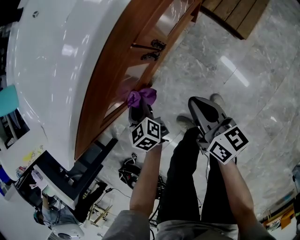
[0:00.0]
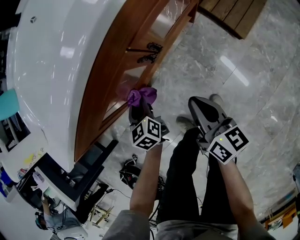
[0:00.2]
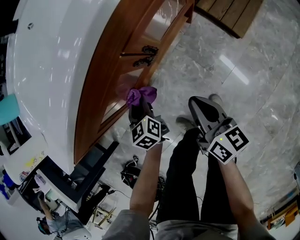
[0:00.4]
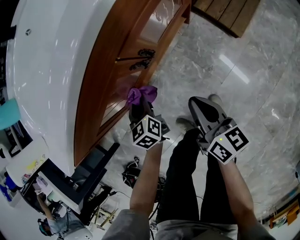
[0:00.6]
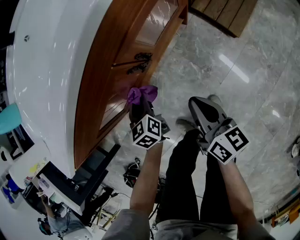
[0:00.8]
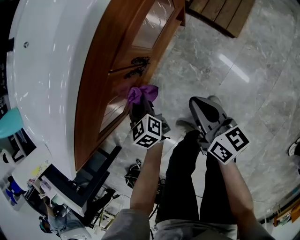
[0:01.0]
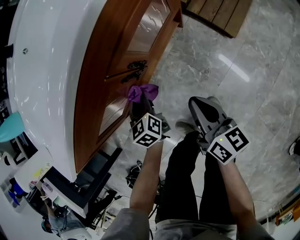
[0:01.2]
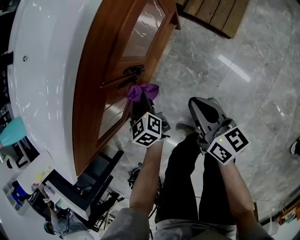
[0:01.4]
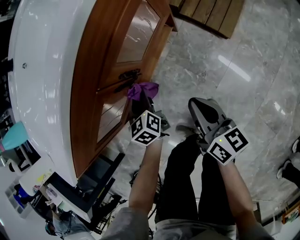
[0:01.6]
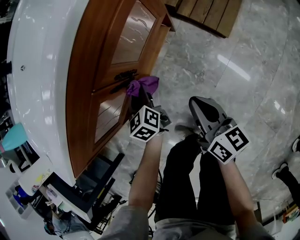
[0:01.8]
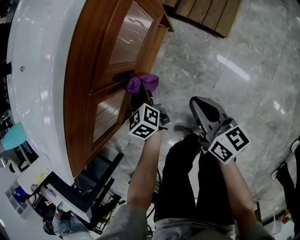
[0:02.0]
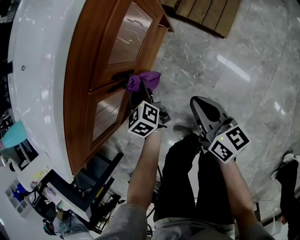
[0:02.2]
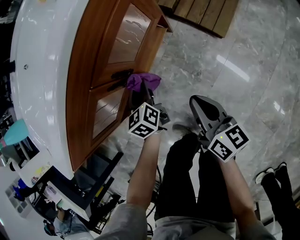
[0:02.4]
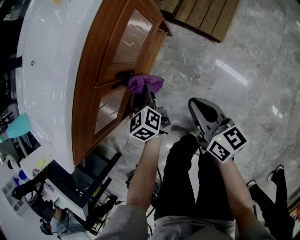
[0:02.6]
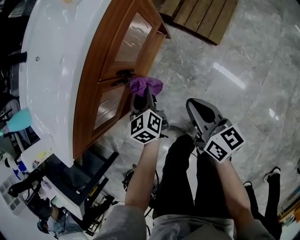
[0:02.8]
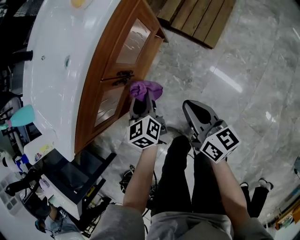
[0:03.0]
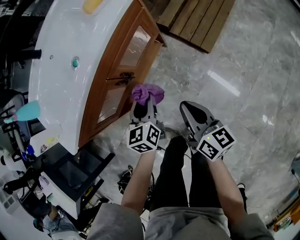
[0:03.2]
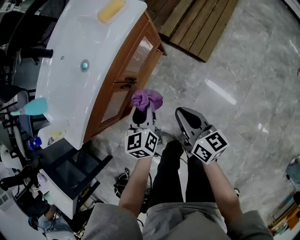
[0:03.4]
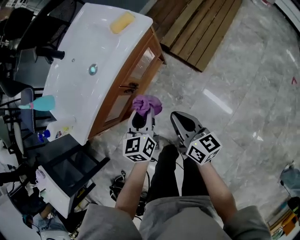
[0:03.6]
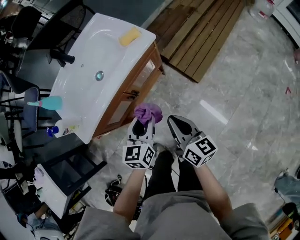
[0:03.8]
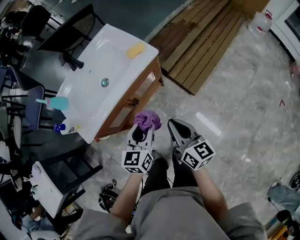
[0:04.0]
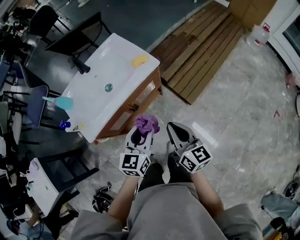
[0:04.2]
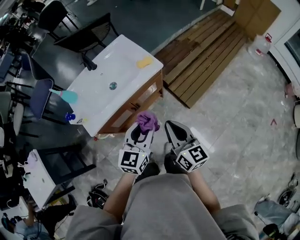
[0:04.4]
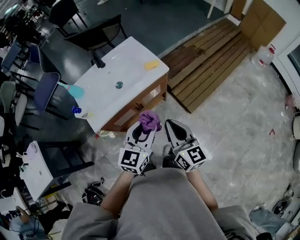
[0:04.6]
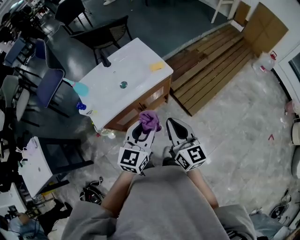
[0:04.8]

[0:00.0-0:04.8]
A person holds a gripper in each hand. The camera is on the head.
0.0 to 1.6 s: Both grippers move to the right, roughly 10 cm.
1.6 to 3.2 s: The right gripper travels upward by roughly 10 cm, while the left gripper heads upward and to the right, covering about 20 cm.
3.2 to 4.8 s: Both grippers travel together upward, about 40 cm. The right gripper changes its angle by about 30 degrees; the left gripper changes its angle by about 30 degrees.

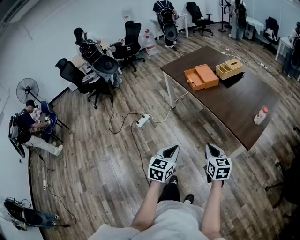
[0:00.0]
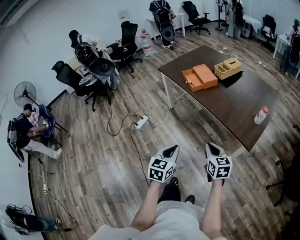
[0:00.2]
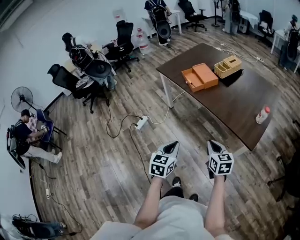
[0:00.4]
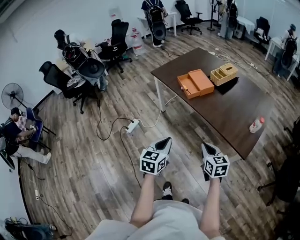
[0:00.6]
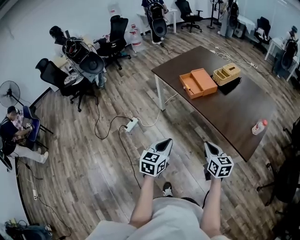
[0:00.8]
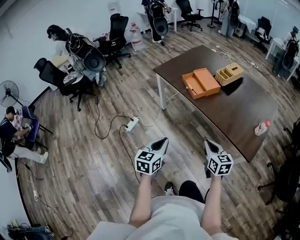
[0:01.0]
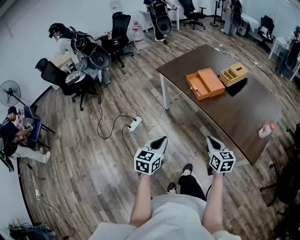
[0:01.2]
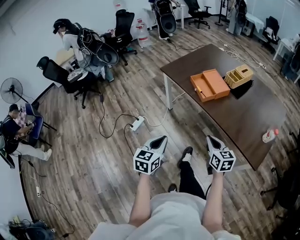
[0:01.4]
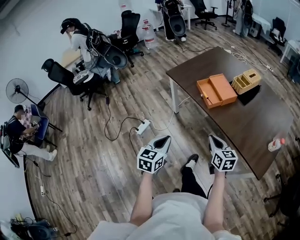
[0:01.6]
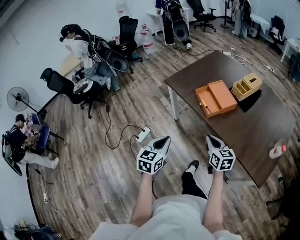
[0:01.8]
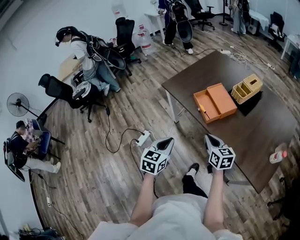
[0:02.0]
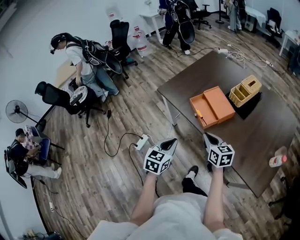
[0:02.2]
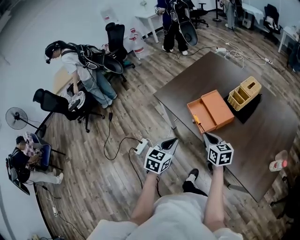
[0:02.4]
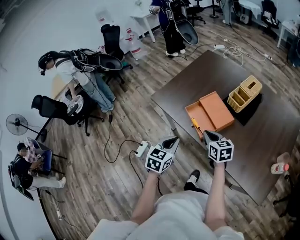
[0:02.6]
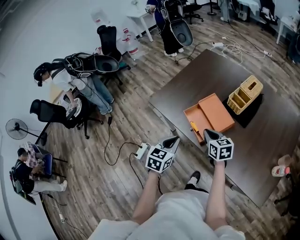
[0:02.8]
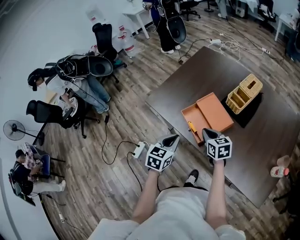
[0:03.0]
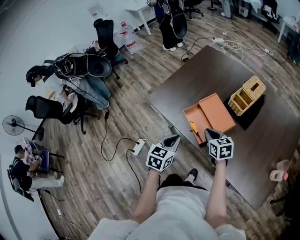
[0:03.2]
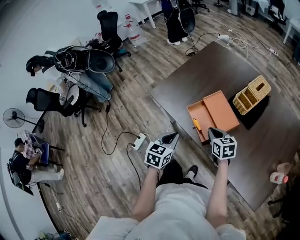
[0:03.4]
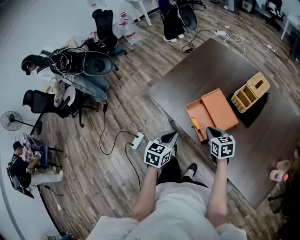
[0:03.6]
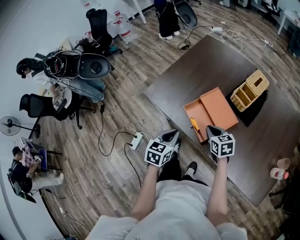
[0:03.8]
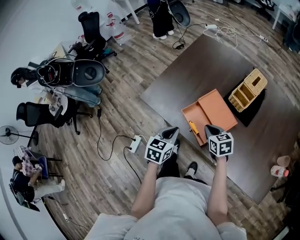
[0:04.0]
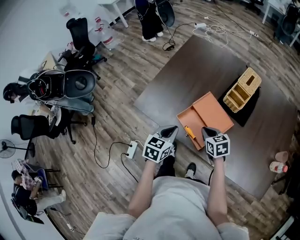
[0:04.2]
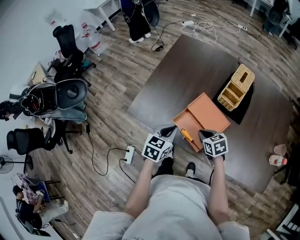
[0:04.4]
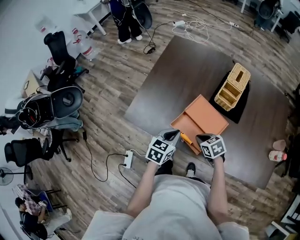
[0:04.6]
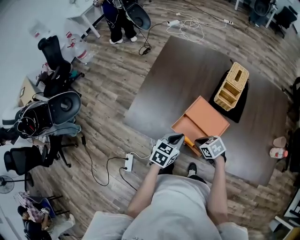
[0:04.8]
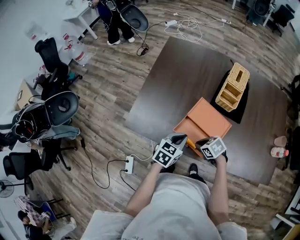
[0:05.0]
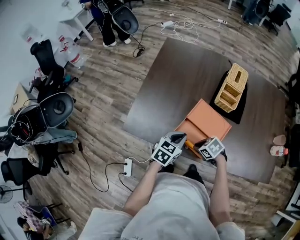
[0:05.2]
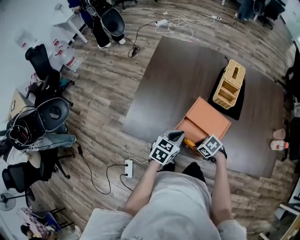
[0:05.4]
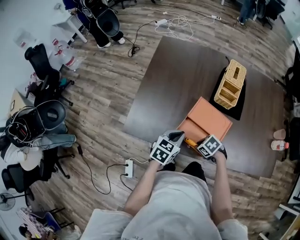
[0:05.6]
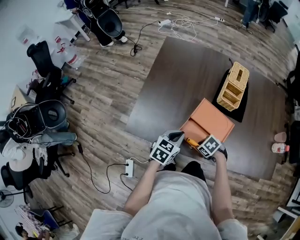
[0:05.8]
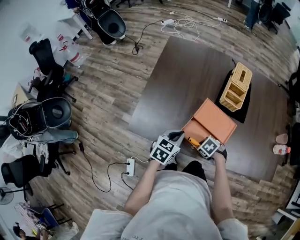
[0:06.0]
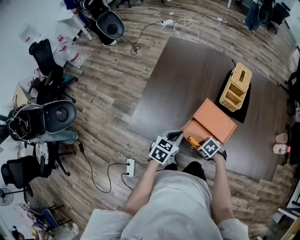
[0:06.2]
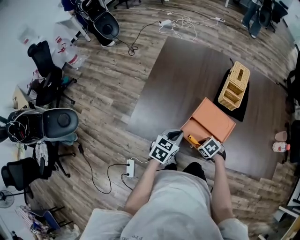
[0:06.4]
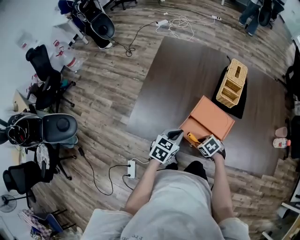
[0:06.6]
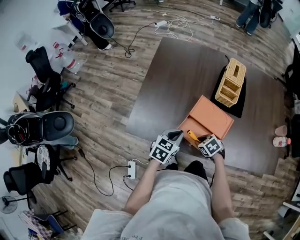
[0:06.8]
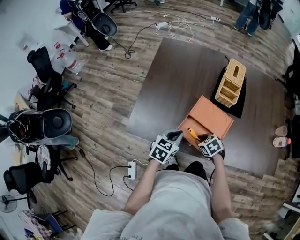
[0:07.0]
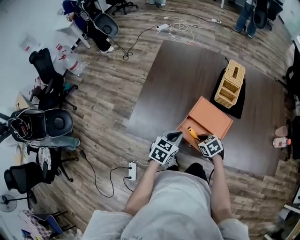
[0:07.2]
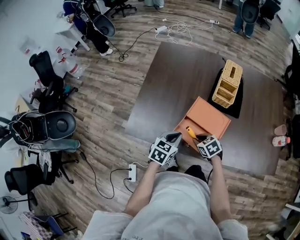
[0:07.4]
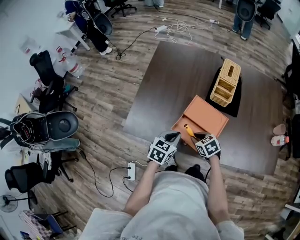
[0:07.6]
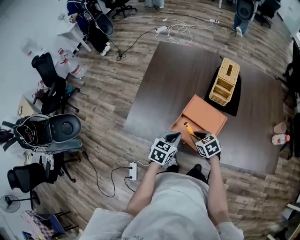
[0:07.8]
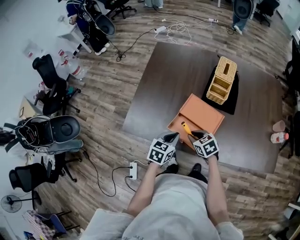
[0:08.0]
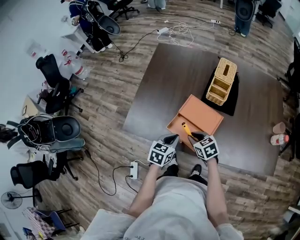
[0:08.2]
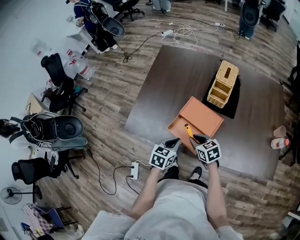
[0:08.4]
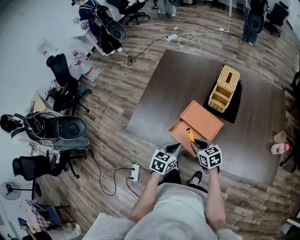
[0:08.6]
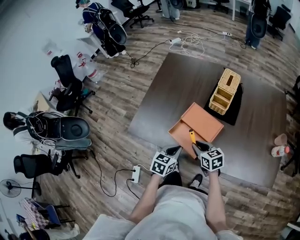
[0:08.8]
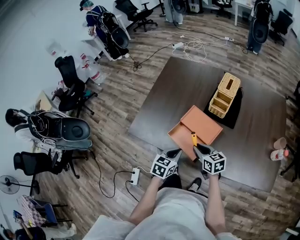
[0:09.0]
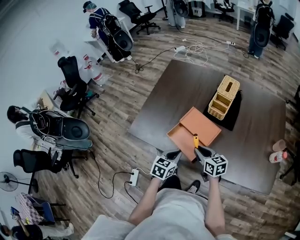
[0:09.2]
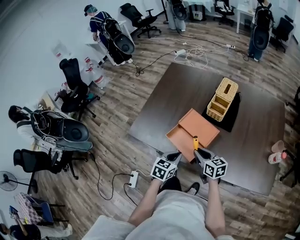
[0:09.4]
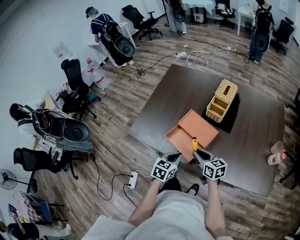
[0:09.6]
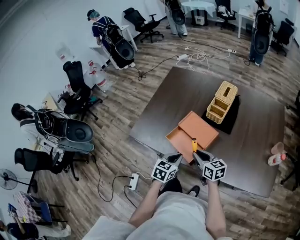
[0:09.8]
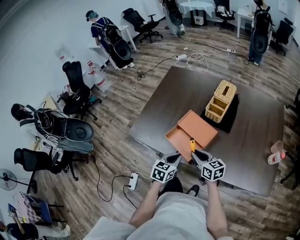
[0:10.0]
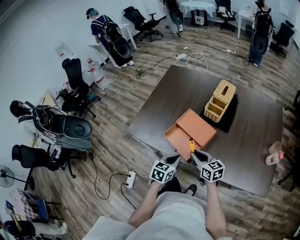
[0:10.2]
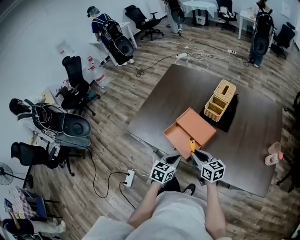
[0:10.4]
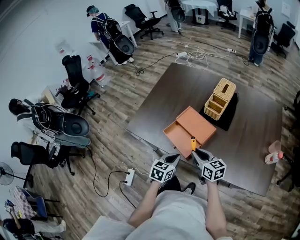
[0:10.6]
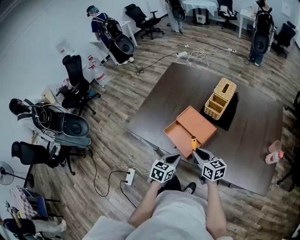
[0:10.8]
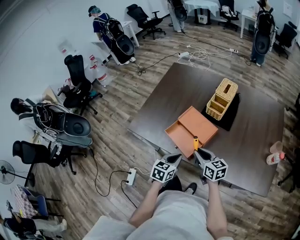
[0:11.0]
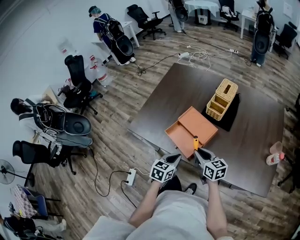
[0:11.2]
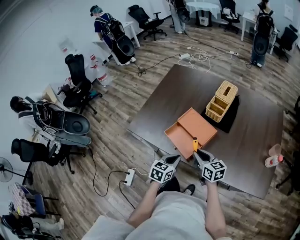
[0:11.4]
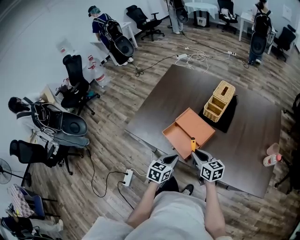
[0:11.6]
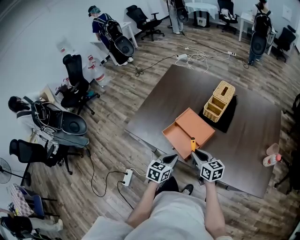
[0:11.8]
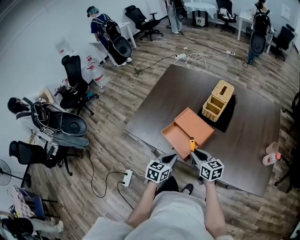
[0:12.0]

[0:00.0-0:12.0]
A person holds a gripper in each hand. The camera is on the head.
0.0 to 1.6 s: The grippers both shift forward and to the left by approximately 30 cm.
1.6 to 3.0 s: The two grippers go approximately 35 cm forward.
3.0 to 4.4 s: The left gripper moves forward, roughly 15 cm. Meanwhile the right gripper heads downward and forward, covering roughly 10 cm.
4.4 to 6.0 s: The left gripper shifts by approximately 5 cm; the right gripper heads downward, covering approximately 10 cm, and rotates approximately 30 degrees.
6.0 to 7.6 s: The right gripper moves upward, approximately 5 cm, and swivels some 30 degrees.
7.6 to 9.0 s: The left gripper heads backward and to the right, covering about 10 cm, while the right gripper goes about 10 cm upward and to the right, and turns by approximately 30 degrees.
9.0 to 10.4 s: The right gripper shifts by roughly 5 cm. Meanwhile the left gripper moves approximately 5 cm.
10.4 to 12.0 s: The grippers stay close to where they were, moving slightly.

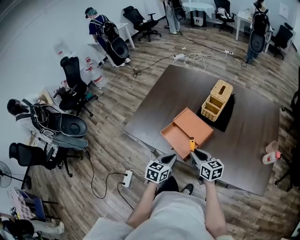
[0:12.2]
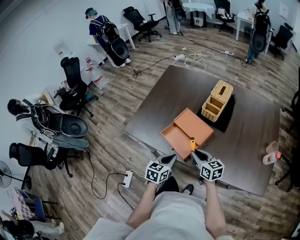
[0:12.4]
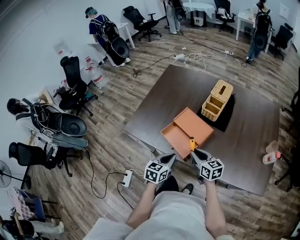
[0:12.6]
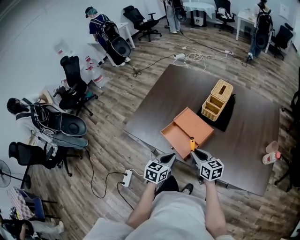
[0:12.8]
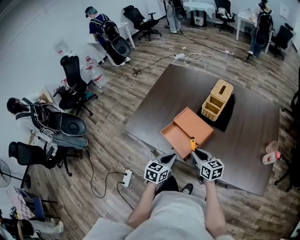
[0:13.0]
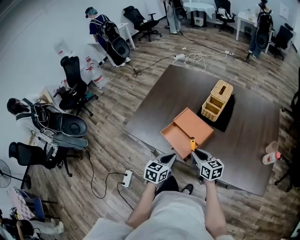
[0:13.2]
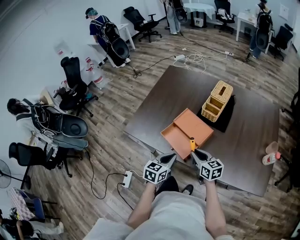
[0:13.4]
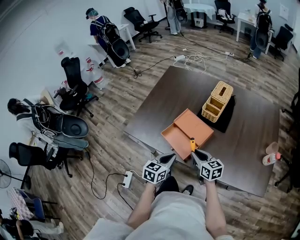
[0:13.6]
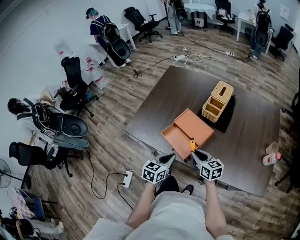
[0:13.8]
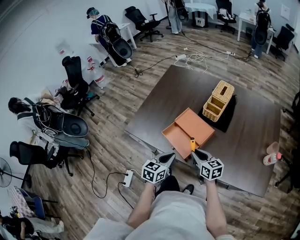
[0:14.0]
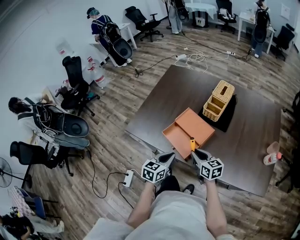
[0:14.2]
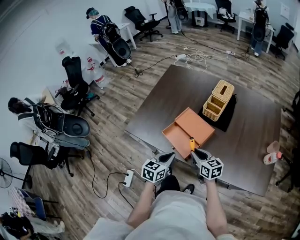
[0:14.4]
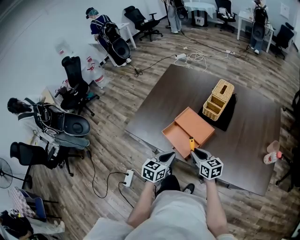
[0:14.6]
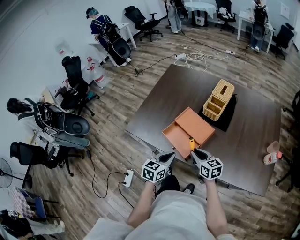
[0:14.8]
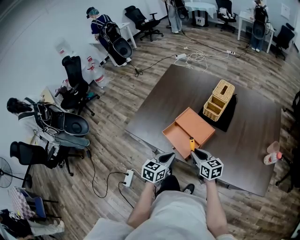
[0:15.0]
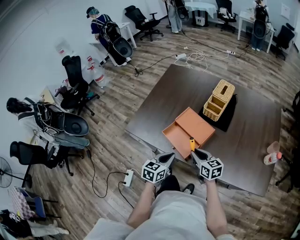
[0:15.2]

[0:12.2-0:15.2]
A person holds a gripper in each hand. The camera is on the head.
12.2 to 13.8 s: The grippers move only a little.
13.8 to 15.2 s: Neither gripper changes place.

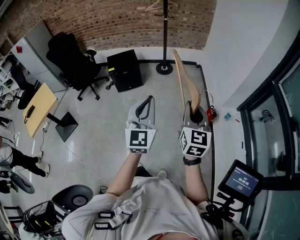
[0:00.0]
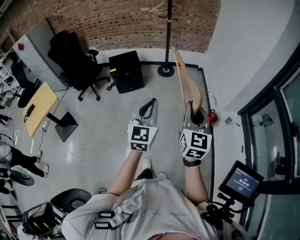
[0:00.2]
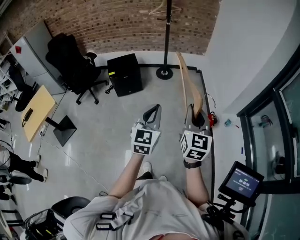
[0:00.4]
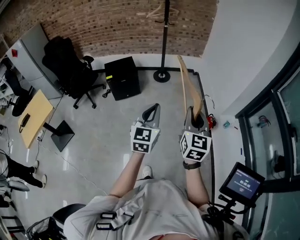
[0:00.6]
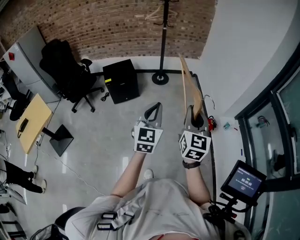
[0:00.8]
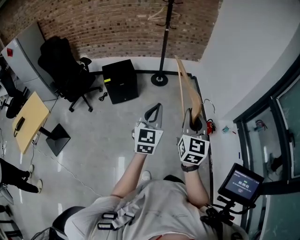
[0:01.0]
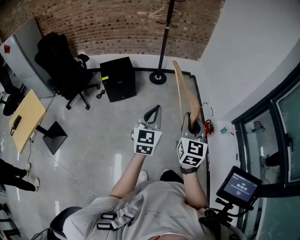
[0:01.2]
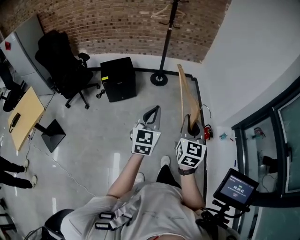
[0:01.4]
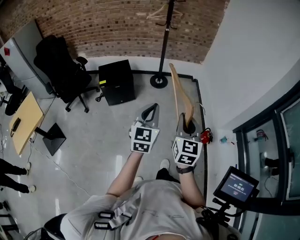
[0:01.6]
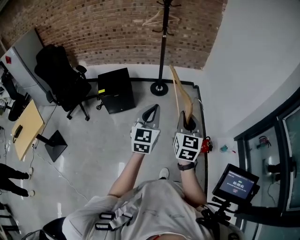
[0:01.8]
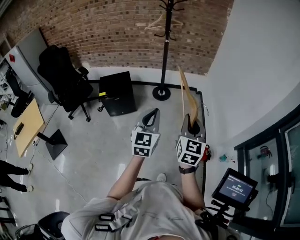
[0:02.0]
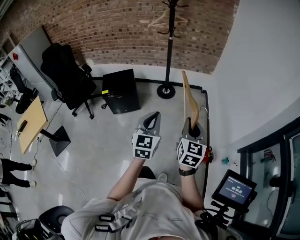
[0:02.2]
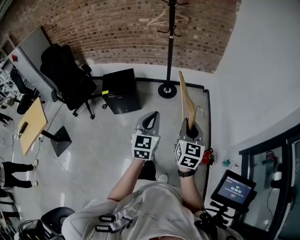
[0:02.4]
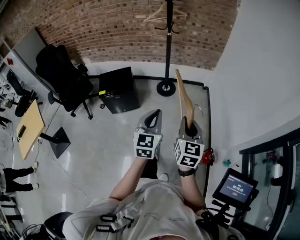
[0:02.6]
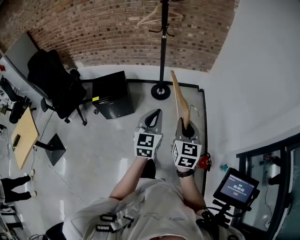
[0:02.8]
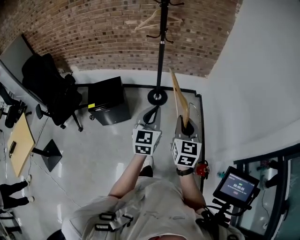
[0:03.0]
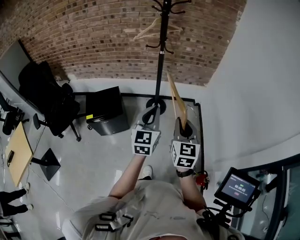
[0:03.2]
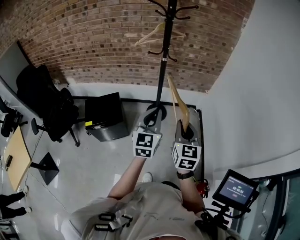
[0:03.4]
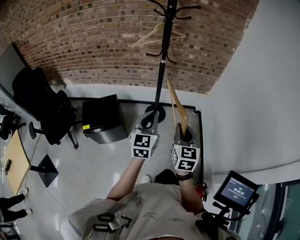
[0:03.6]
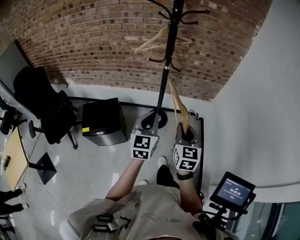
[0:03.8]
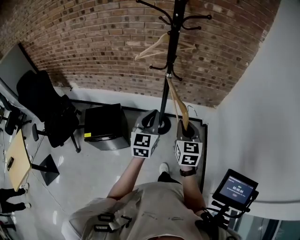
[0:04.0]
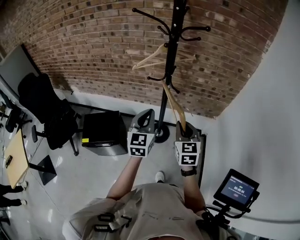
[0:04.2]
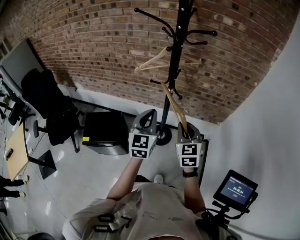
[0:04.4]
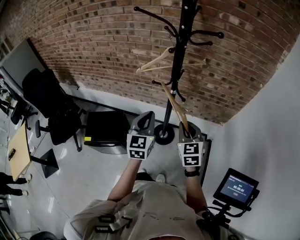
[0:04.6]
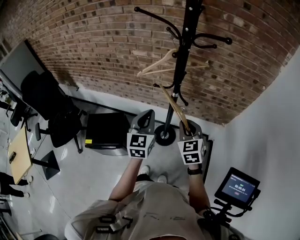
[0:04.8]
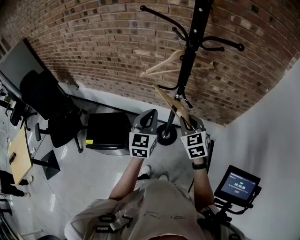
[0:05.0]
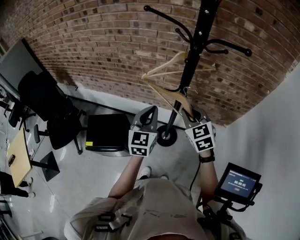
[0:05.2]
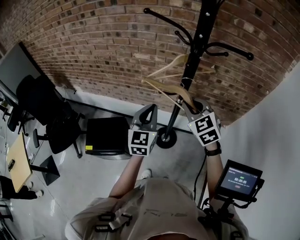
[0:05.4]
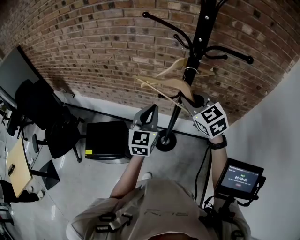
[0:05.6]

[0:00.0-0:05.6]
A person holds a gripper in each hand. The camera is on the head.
0.0 to 1.4 s: The right gripper goes roughly 15 cm forward and to the left, while the left gripper is displaced forward, downward and to the left by roughly 20 cm.
1.4 to 2.8 s: The grippers both shift forward by roughly 35 cm.
2.8 to 4.2 s: The pair of grippers is taken forward, about 50 cm.
4.2 to 5.6 s: The right gripper heads forward and upward, covering roughly 25 cm, and turns by about 30 degrees, while the left gripper moves forward, some 15 cm.
